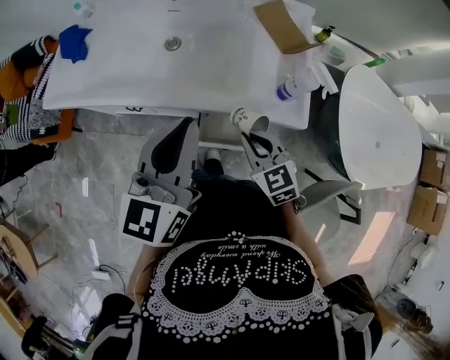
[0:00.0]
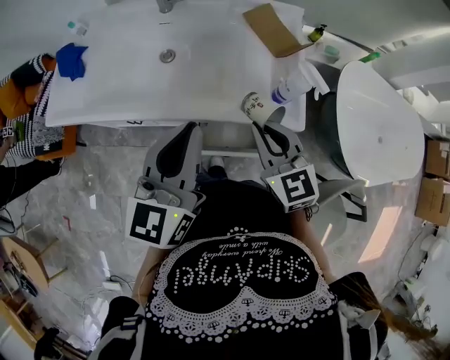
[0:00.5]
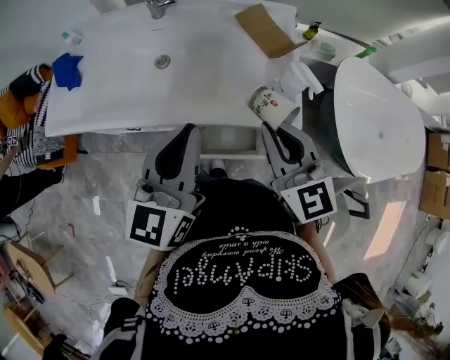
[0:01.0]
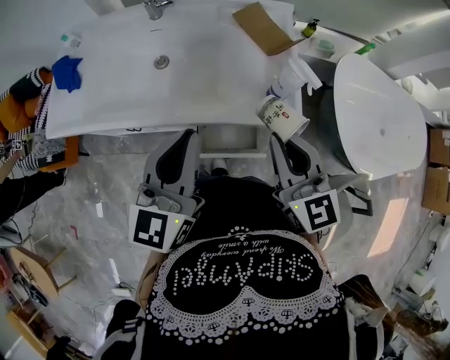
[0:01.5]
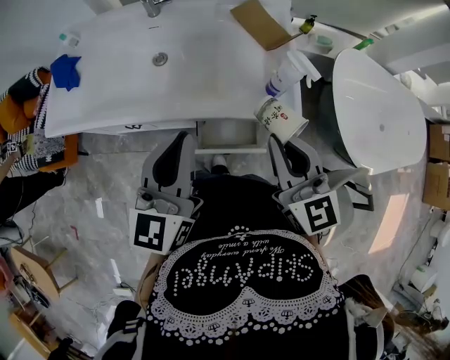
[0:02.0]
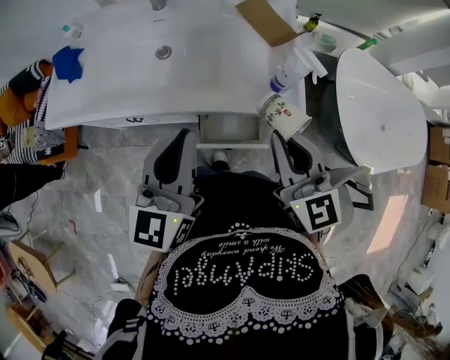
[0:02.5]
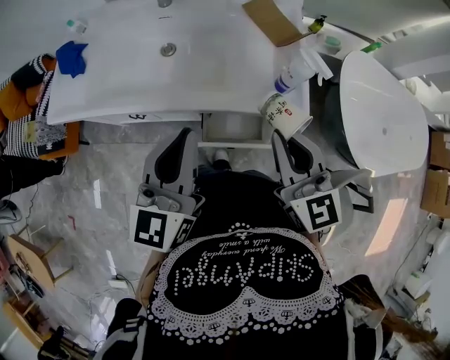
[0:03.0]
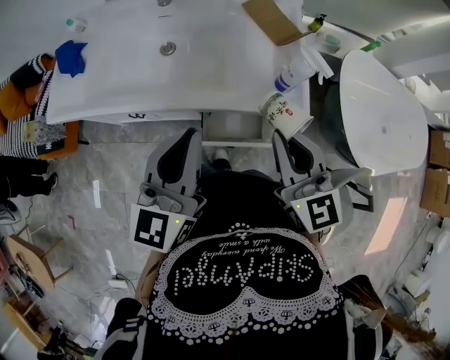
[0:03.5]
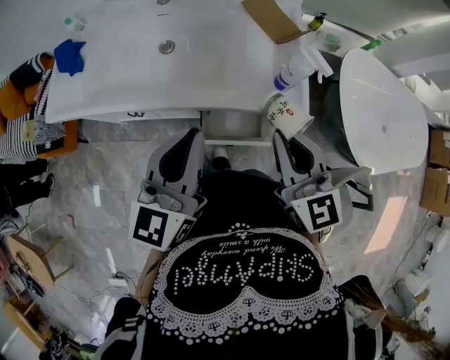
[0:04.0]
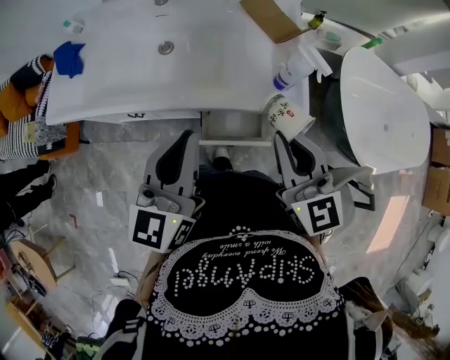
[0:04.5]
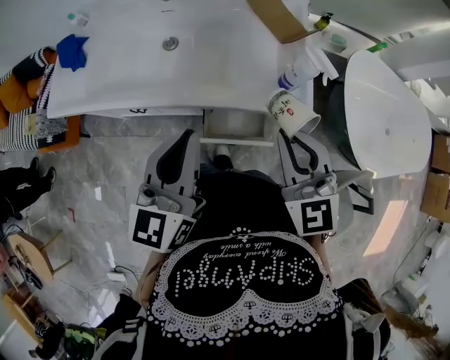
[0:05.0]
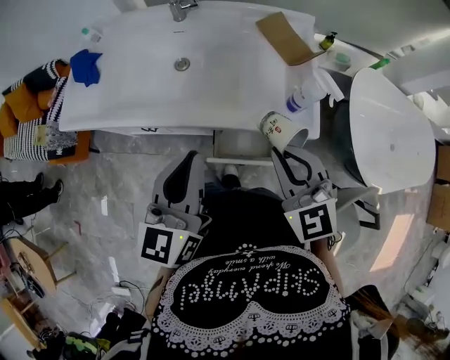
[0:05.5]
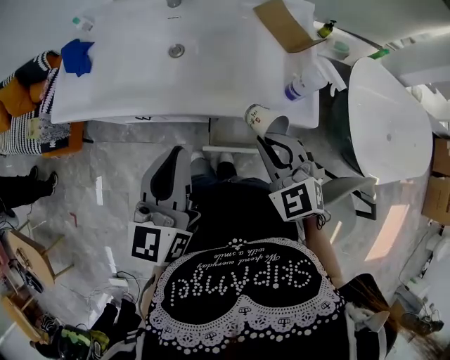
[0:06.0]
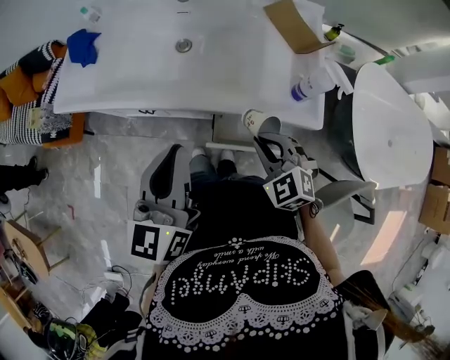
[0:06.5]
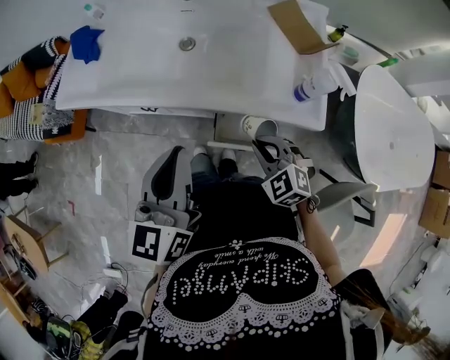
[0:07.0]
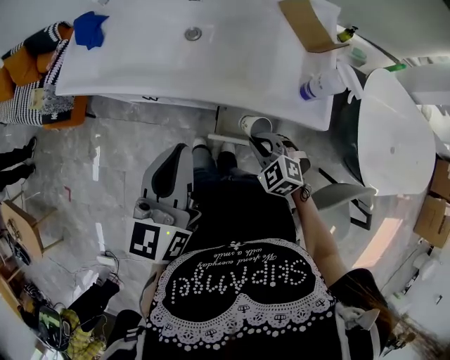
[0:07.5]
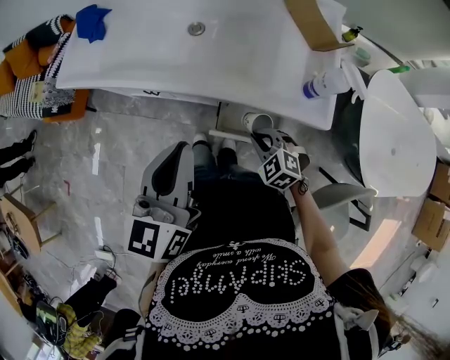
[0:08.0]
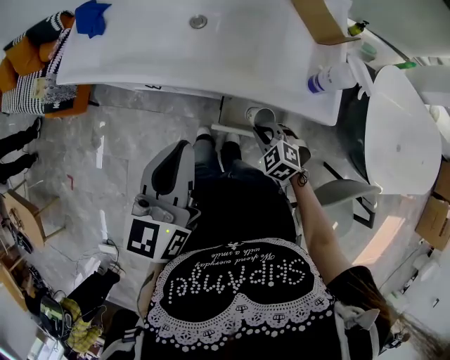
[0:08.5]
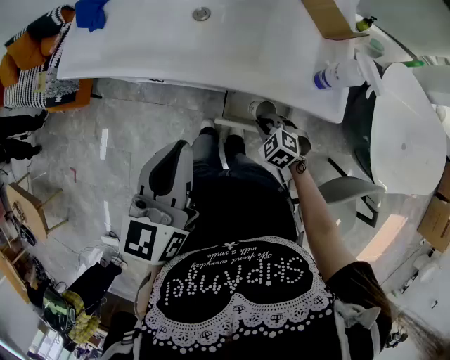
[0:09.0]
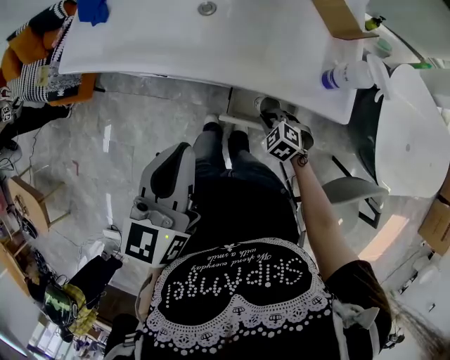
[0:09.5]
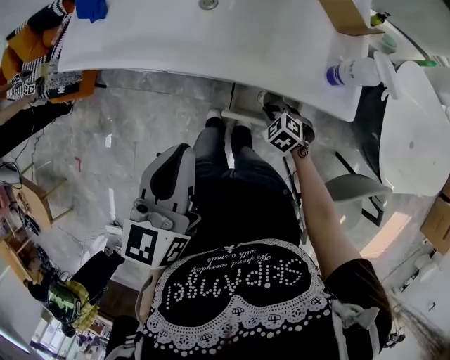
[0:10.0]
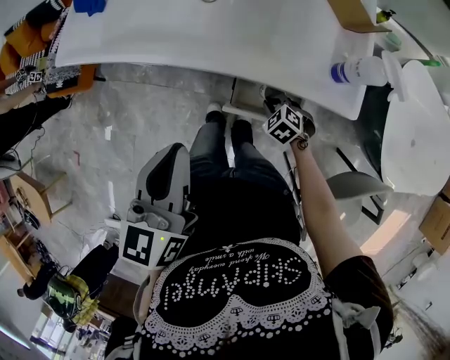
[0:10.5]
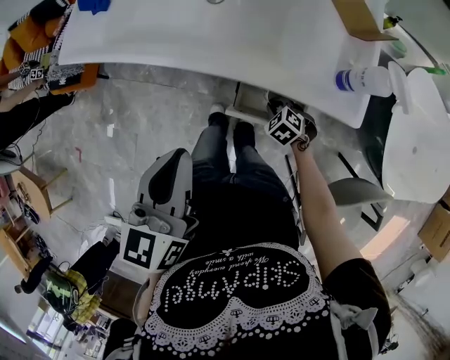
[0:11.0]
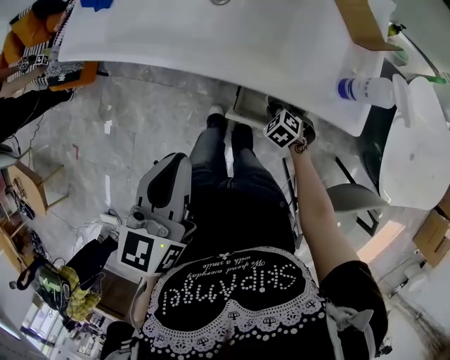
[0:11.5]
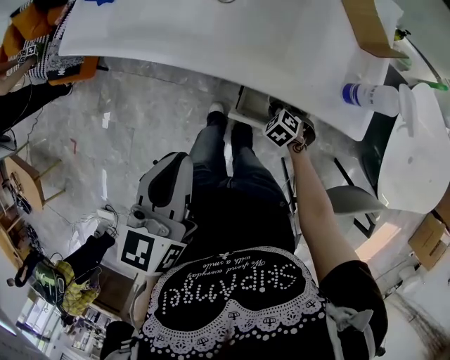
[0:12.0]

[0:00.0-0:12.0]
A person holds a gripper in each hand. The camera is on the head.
0:00.0 to 0:02.0: The right gripper shifts approximately 15 cm upward, and rotates about 30 degrees.
0:02.0 to 0:04.0: The grippers make only small movements.
0:04.0 to 0:06.0: The left gripper is displaced to the left by about 5 cm, while the right gripper goes some 10 cm downward, and turns by approximately 40 degrees.
0:06.0 to 0:08.0: The right gripper heads downward, covering about 20 cm, and turns by approximately 30 degrees.
0:08.0 to 0:10.0: The right gripper is displaced downward by approximately 10 cm.
0:10.0 to 0:12.0: The right gripper moves downward, roughly 5 cm.

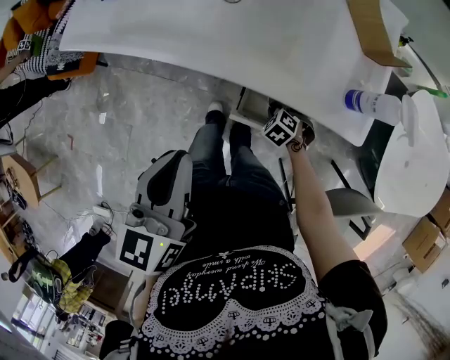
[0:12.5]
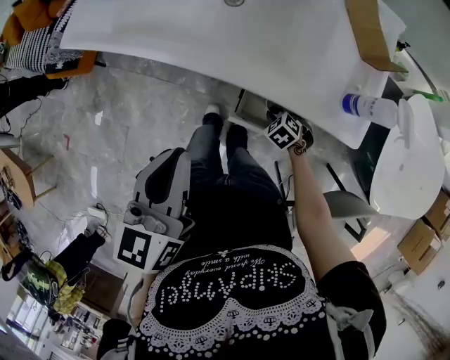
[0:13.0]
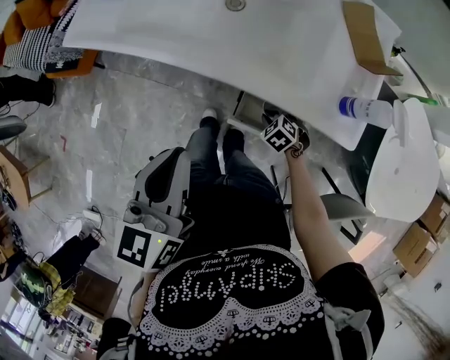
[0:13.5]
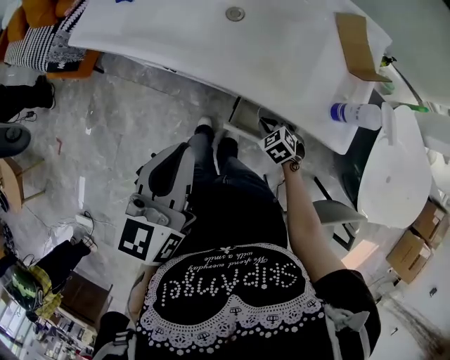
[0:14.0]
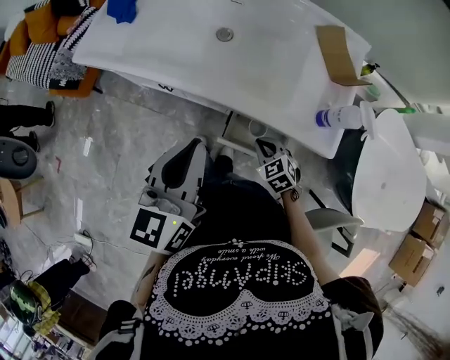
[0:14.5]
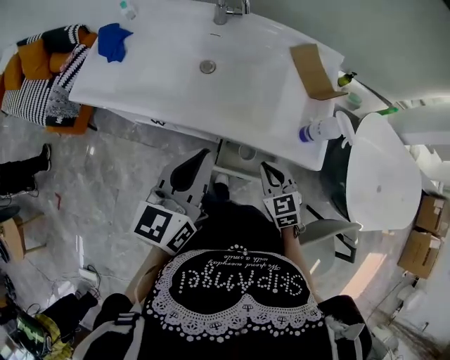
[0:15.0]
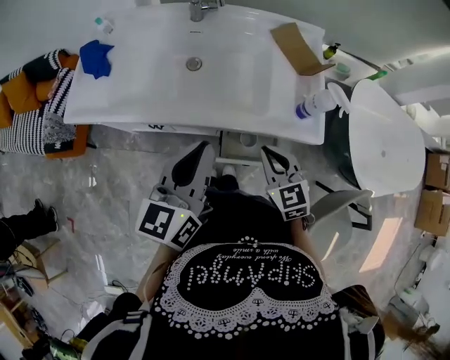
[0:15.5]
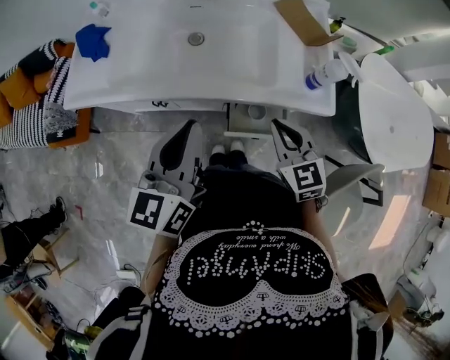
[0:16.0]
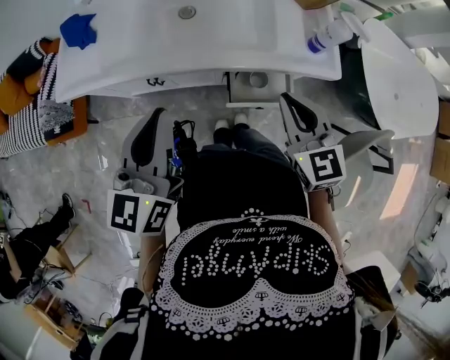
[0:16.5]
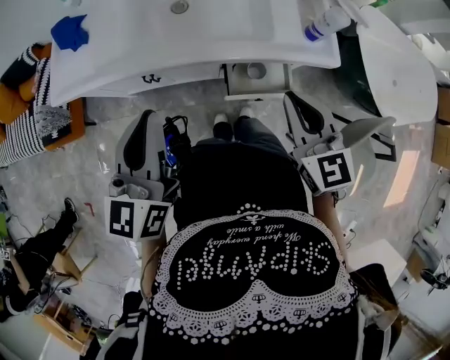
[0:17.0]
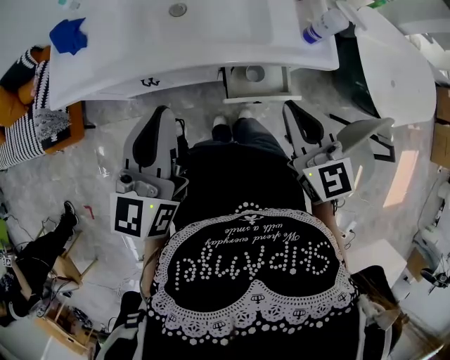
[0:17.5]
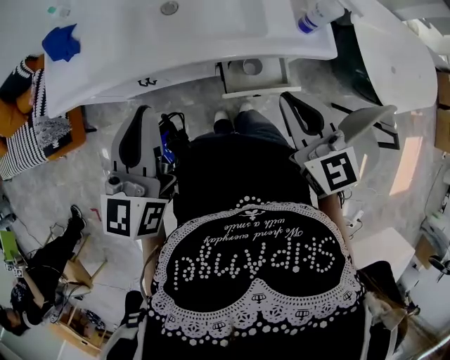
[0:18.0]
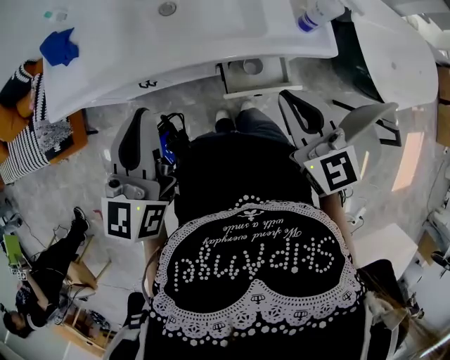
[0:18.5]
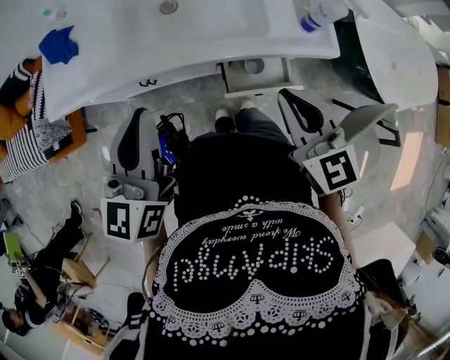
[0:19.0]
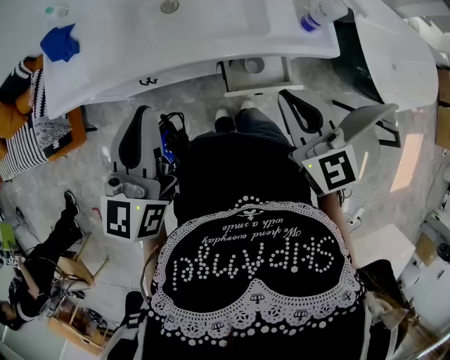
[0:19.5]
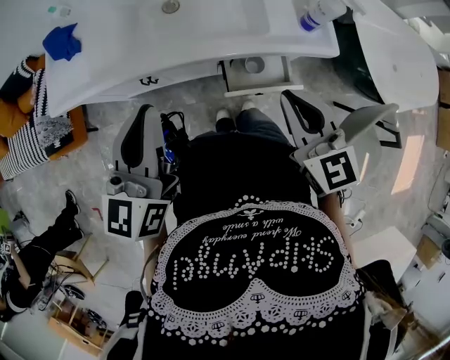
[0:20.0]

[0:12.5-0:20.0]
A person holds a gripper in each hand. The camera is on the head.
0:12.5 to 0:14.5: The right gripper goes roughly 15 cm upward, and swivels about 20 degrees.
0:14.5 to 0:16.5: The left gripper goes about 10 cm to the left; the right gripper is displaced upward by roughly 25 cm, and tilts its fingers approximately 30 degrees upward.
0:16.5 to 0:20.0: There are only small adjustments of the grippers.

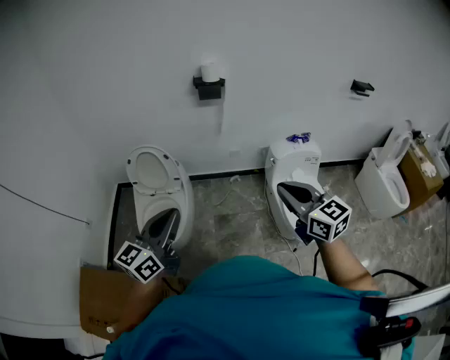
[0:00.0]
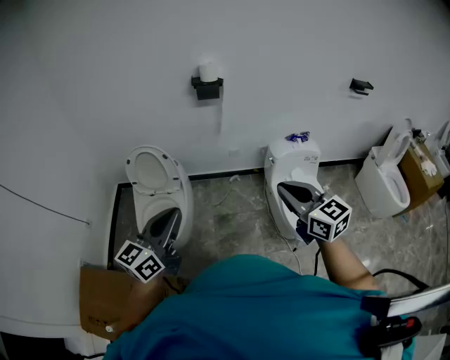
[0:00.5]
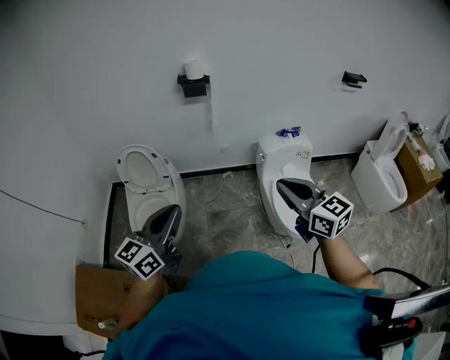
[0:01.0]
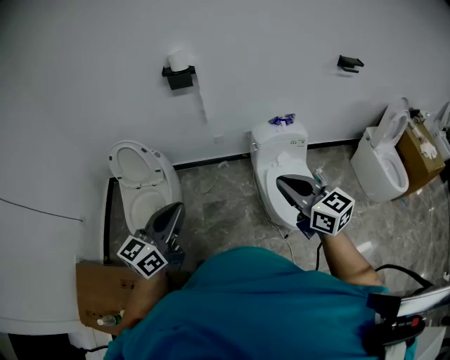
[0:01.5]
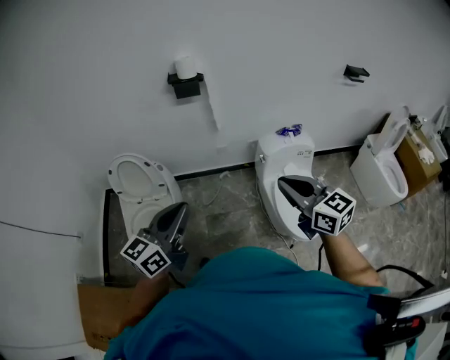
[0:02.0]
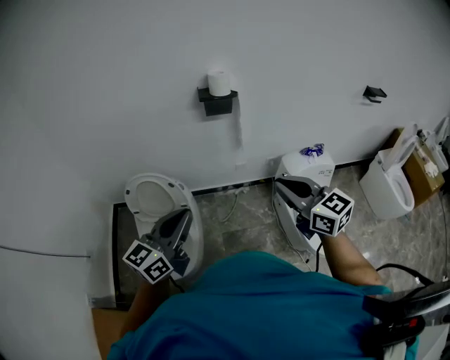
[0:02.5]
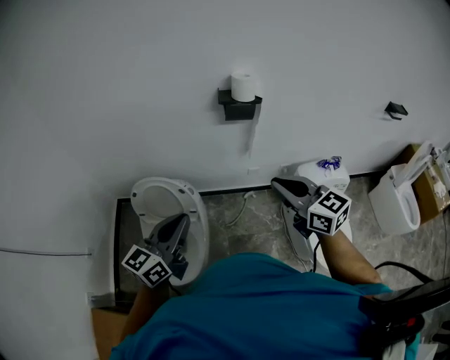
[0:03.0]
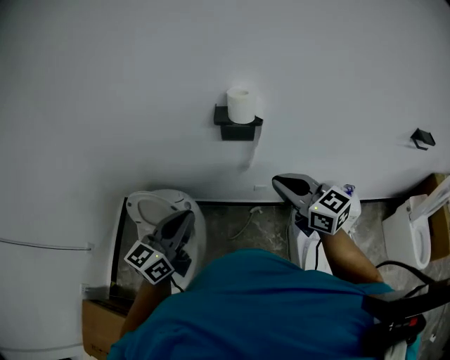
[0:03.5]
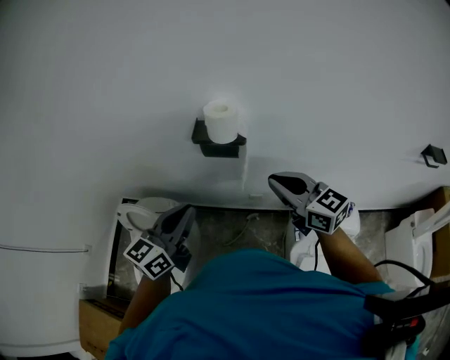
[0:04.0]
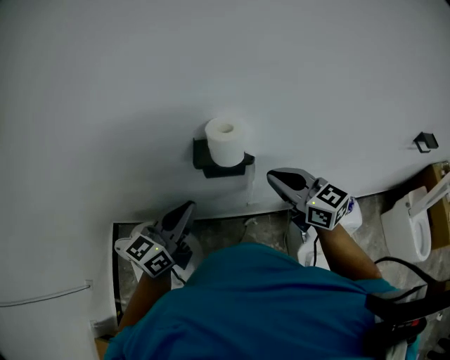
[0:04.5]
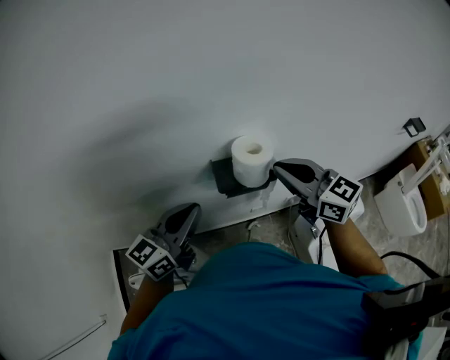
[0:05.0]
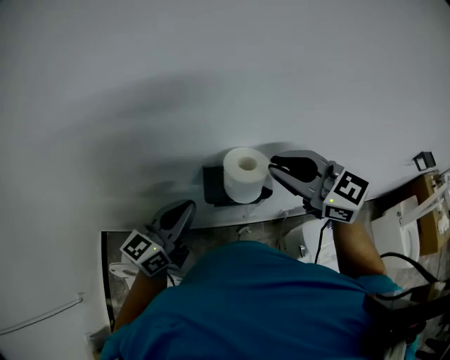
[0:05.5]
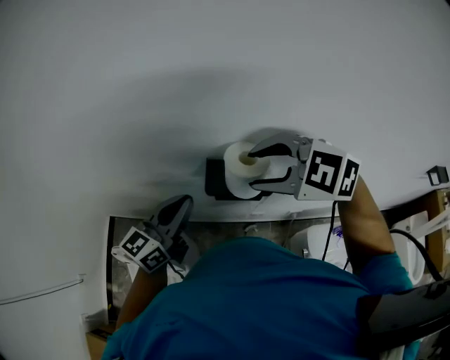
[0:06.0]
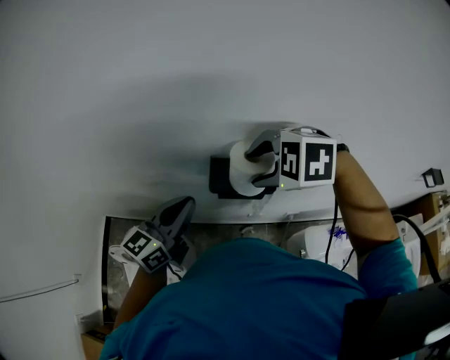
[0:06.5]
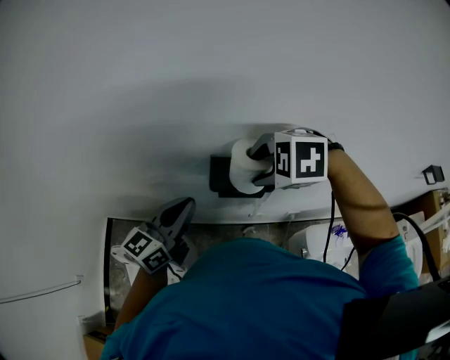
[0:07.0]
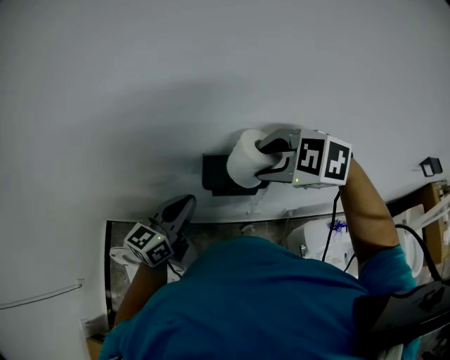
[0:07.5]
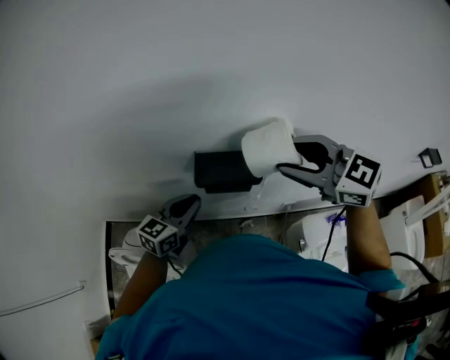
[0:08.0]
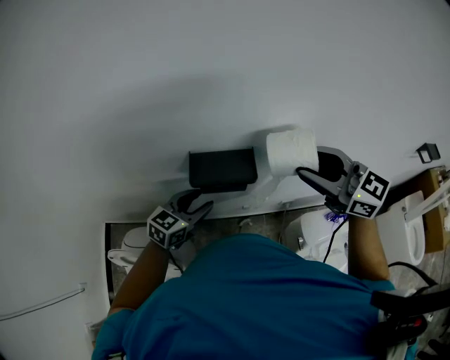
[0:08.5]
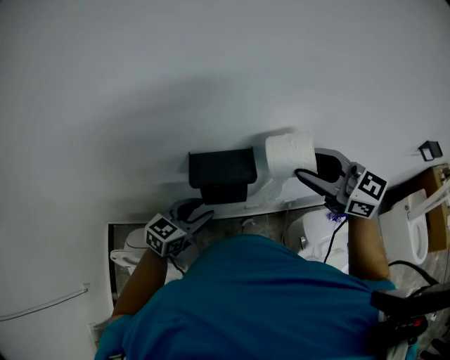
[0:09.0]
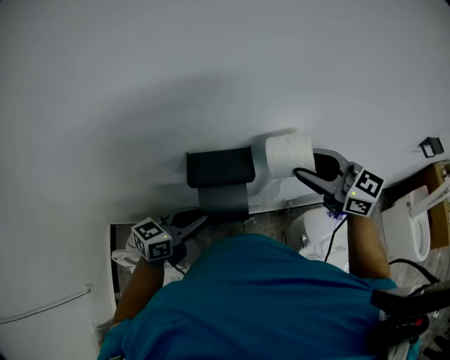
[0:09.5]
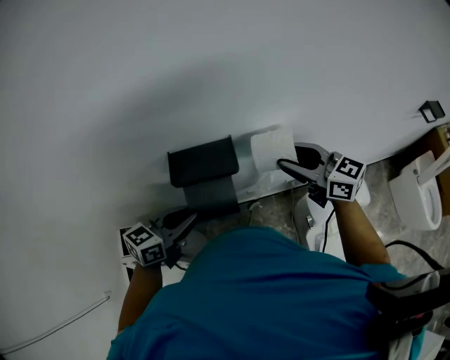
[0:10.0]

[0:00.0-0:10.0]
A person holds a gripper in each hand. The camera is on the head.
0:00.0 to 0:02.0: The grippers both shift forward and to the right by about 10 cm.
0:02.0 to 0:04.0: The pair of grippers is taken forward, some 40 cm.
0:04.0 to 0:06.0: The right gripper moves forward and to the left, some 20 cm, tilts its fingers about 30 degrees downward, and opens, while the left gripper moves forward, roughly 20 cm.
0:06.0 to 0:08.0: The left gripper heads downward, covering roughly 10 cm. The right gripper shifts some 10 cm to the right, and rotates approximately 30 degrees.
0:08.0 to 0:10.0: The right gripper heads downward and to the right, covering approximately 15 cm, and changes its angle by some 30 degrees; the left gripper moves approximately 5 cm, and opens, then closes once more.
